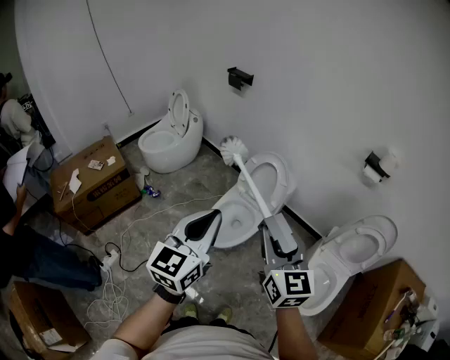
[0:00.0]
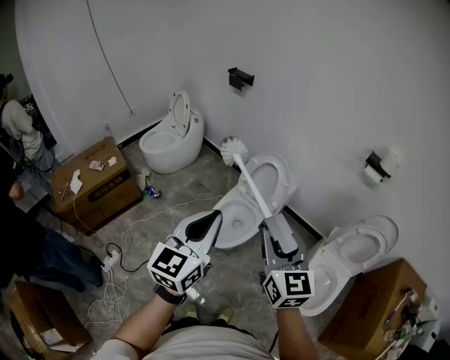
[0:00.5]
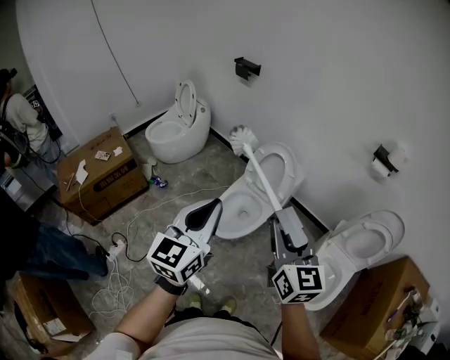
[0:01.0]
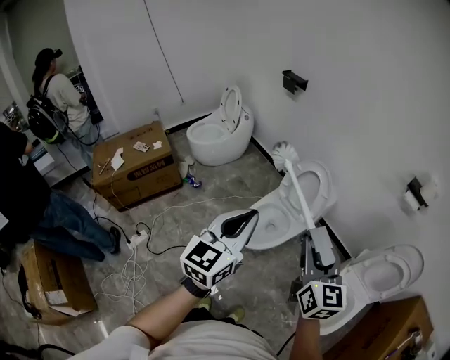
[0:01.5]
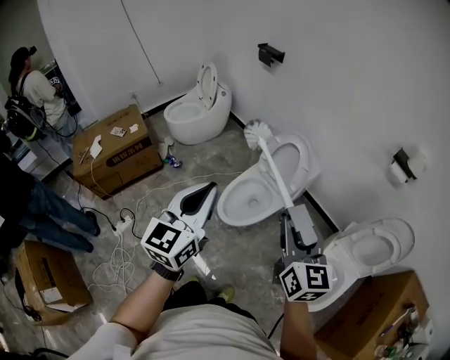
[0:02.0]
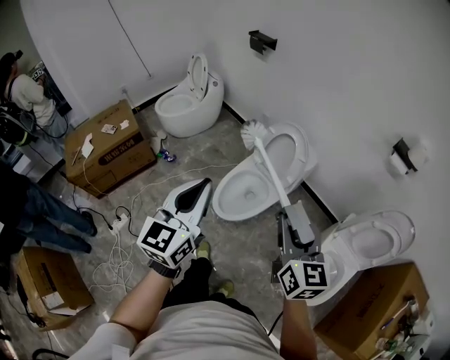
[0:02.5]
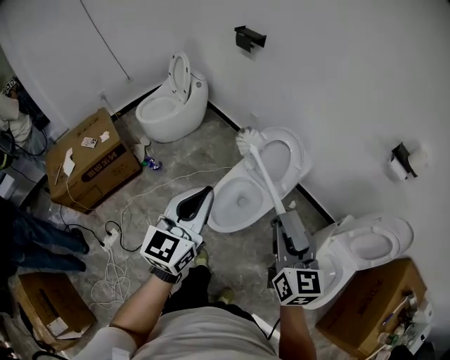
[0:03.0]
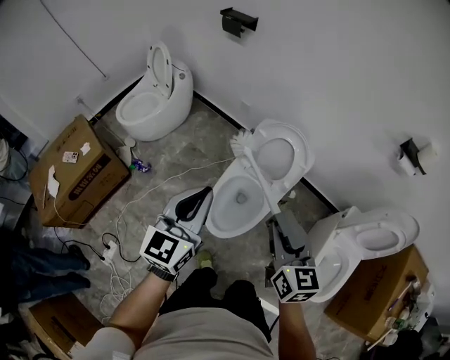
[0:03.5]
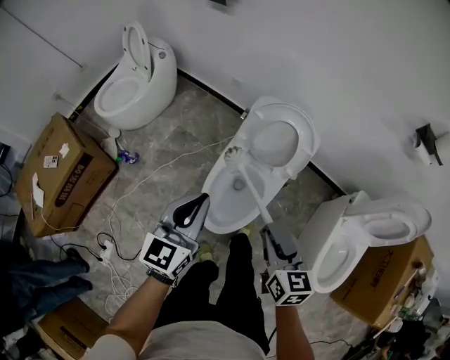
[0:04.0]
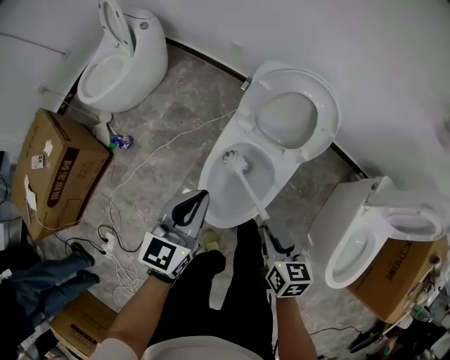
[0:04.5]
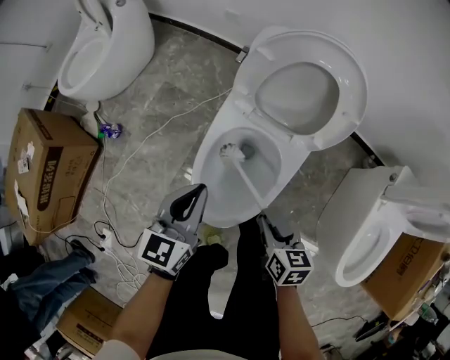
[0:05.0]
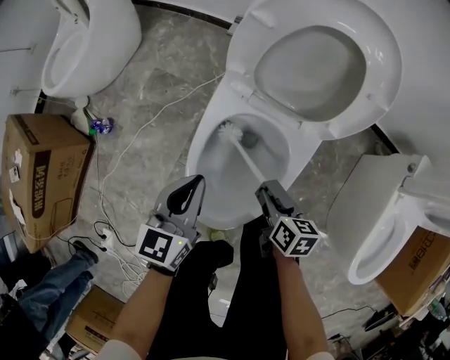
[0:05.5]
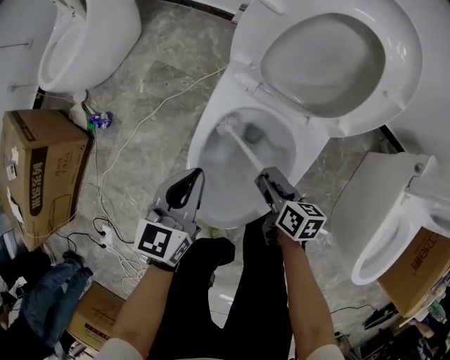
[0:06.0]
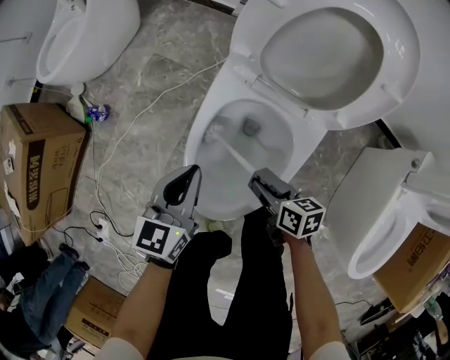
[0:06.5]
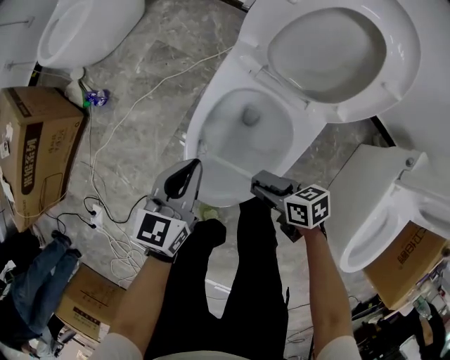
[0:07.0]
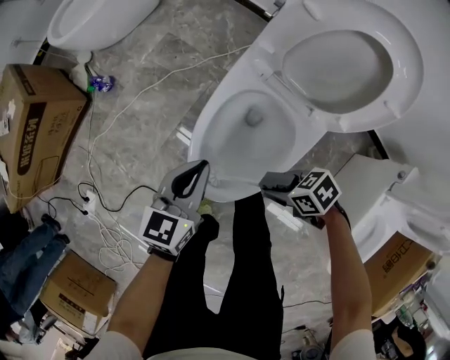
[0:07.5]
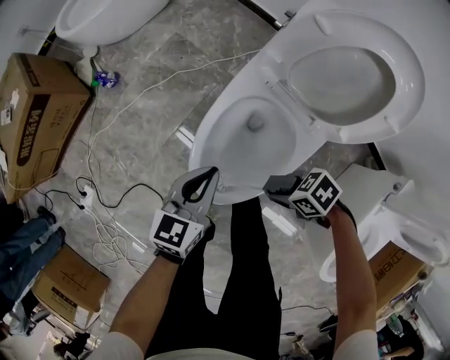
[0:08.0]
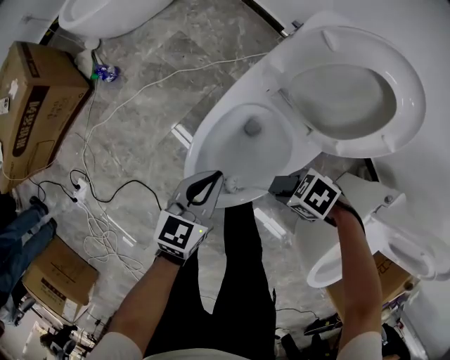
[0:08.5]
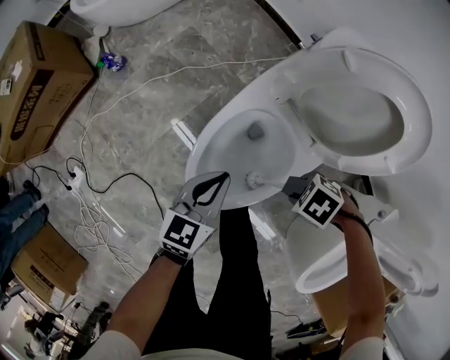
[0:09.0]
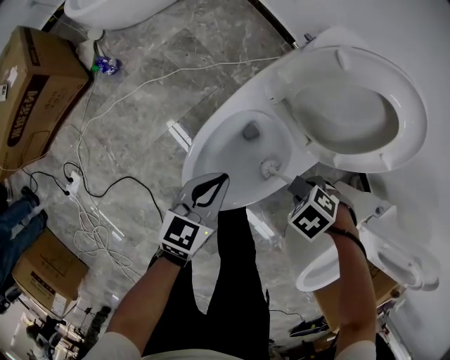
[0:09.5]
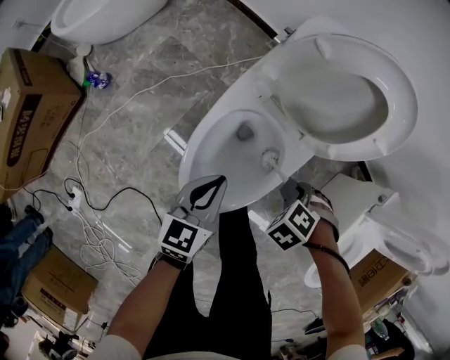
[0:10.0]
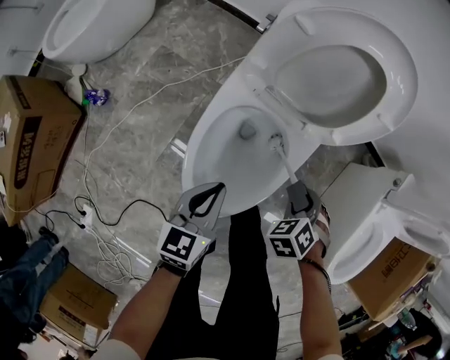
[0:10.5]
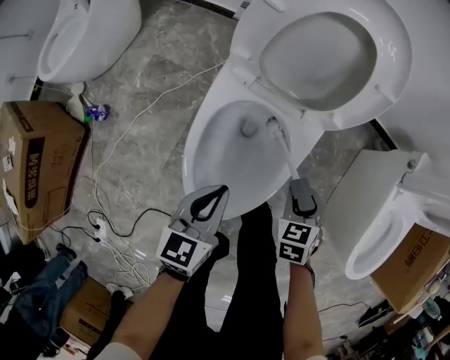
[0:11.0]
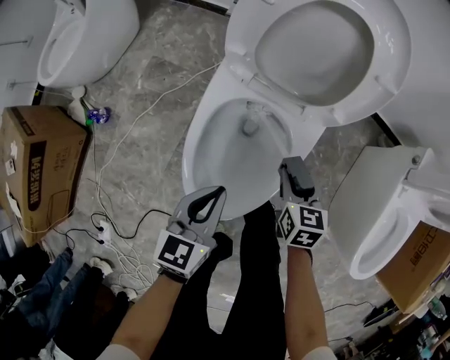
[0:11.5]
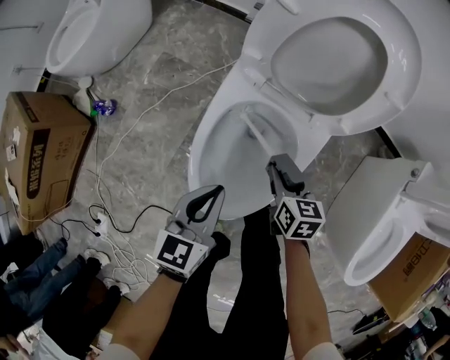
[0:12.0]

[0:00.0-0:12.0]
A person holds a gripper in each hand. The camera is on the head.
0:00.0 to 0:02.0: The right gripper shifts some 5 cm to the right.
0:02.0 to 0:04.0: The left gripper shifts some 40 cm forward and downward, and changes its angle by about 20 degrees; the right gripper is displaced downward and forward by roughly 35 cm, and rotates some 30 degrees.
0:04.0 to 0:06.0: Both grippers travel together downward, roughly 40 cm. The right gripper rotates about 40 degrees.
0:06.0 to 0:08.0: The left gripper changes place by roughly 5 cm, while the right gripper travels upward by roughly 5 cm, and changes its angle by roughly 80 degrees.
0:08.0 to 0:10.0: The right gripper changes place by roughly 10 cm, and turns by approximately 50 degrees.
0:10.0 to 0:12.0: The right gripper travels downward by some 5 cm, and tilts its fingers roughly 40 degrees upward.

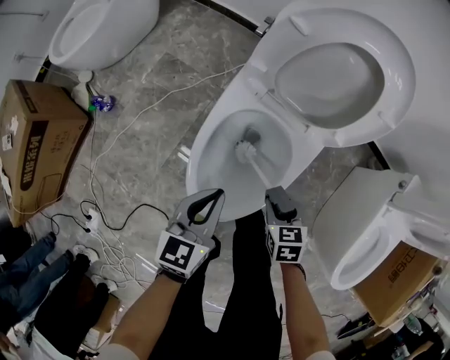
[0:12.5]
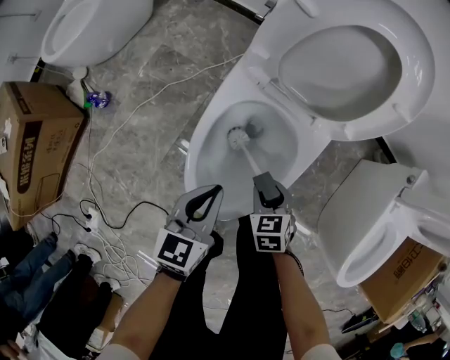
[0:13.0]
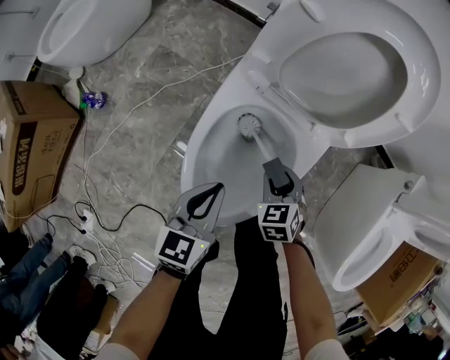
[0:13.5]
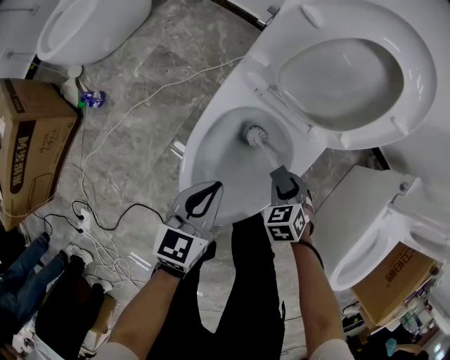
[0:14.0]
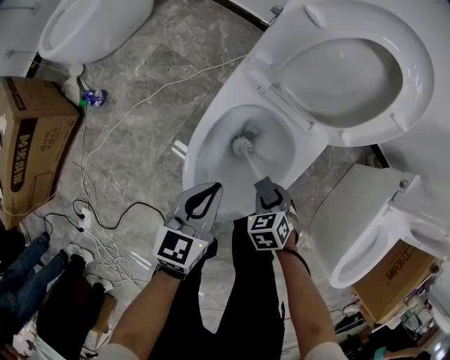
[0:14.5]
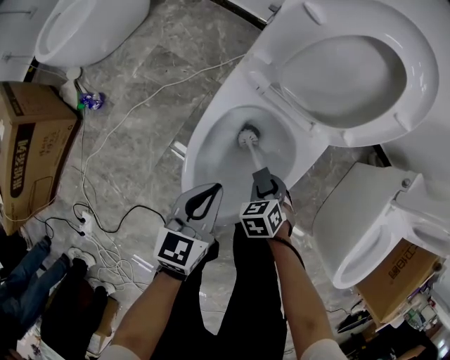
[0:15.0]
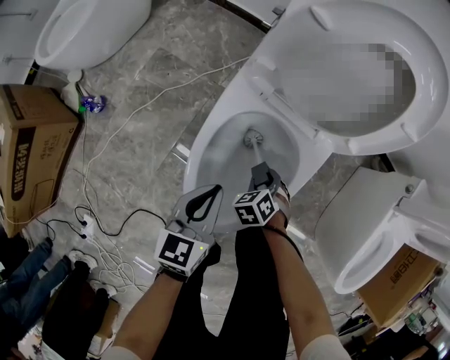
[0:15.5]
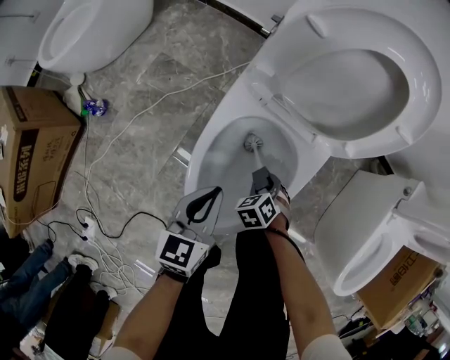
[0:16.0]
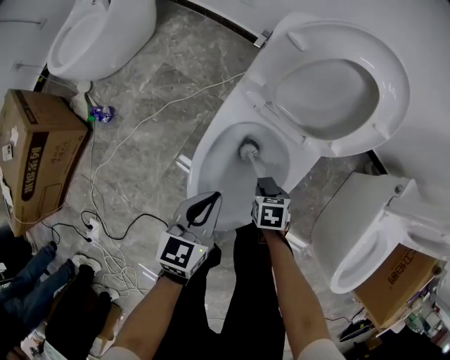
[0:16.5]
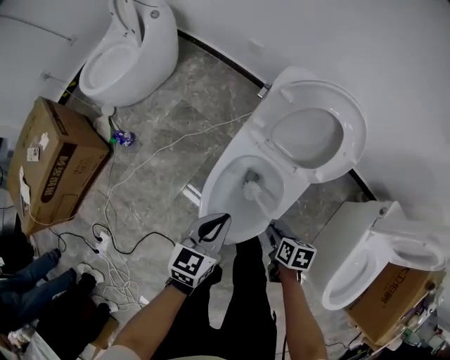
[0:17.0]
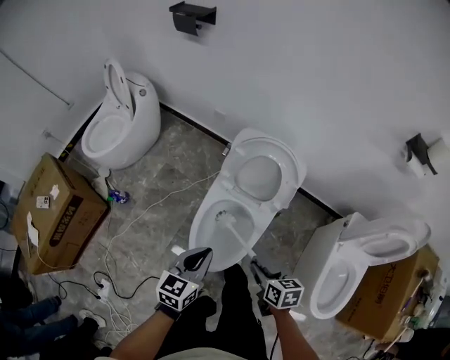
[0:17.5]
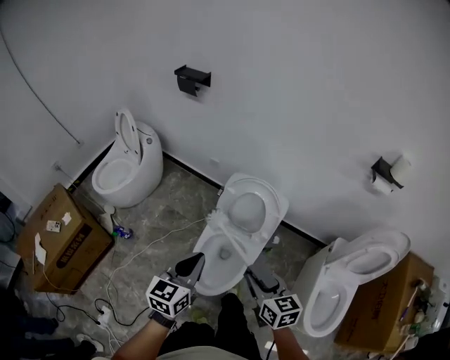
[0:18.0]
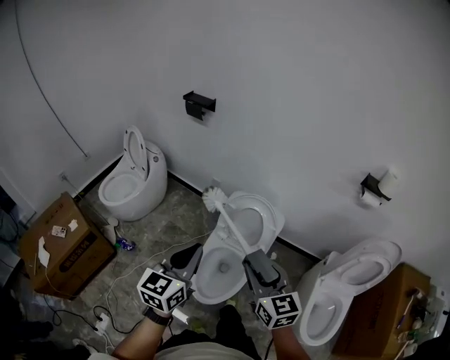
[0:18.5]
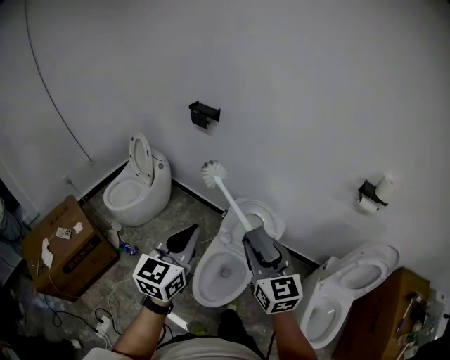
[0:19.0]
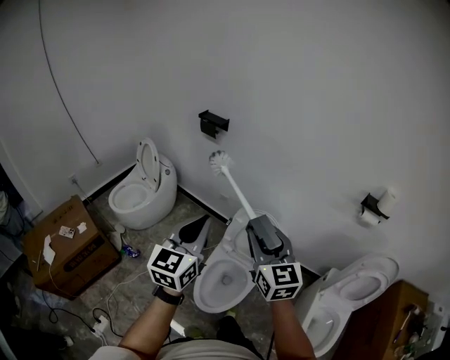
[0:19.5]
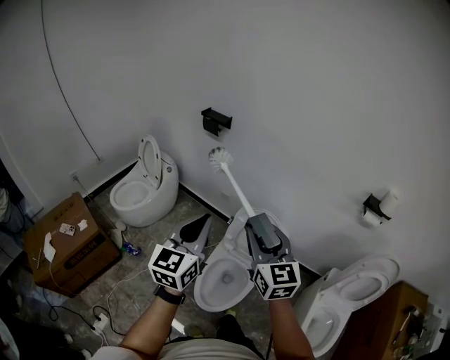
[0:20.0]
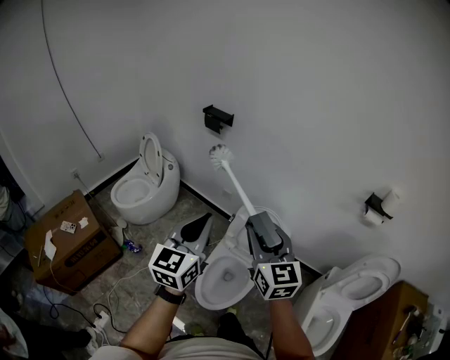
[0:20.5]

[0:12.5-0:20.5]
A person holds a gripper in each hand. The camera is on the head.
0:12.5 to 0:14.5: The right gripper goes about 5 cm downward, and turns by about 30 degrees.
0:14.5 to 0:16.5: The right gripper swivels approximately 30 degrees.
0:16.5 to 0:18.5: The two grippers go some 60 cm upward. The right gripper tips its fingers upward by roughly 60 degrees; the left gripper rotates approximately 20 degrees.
0:18.5 to 0:20.5: The right gripper goes roughly 15 cm upward, forward and to the left. The left gripper heads upward, covering some 10 cm.

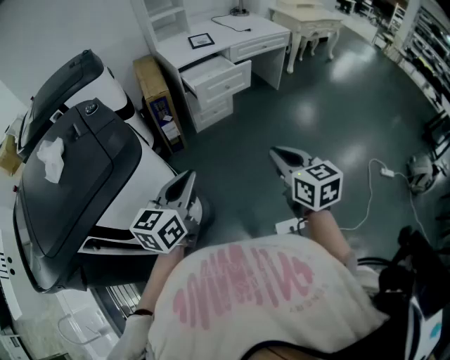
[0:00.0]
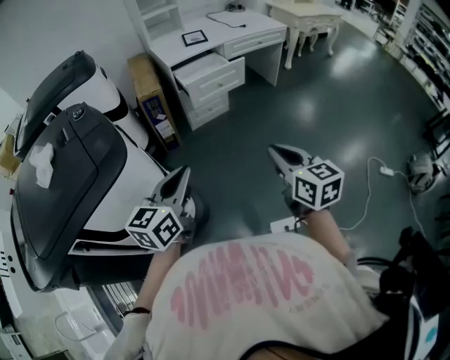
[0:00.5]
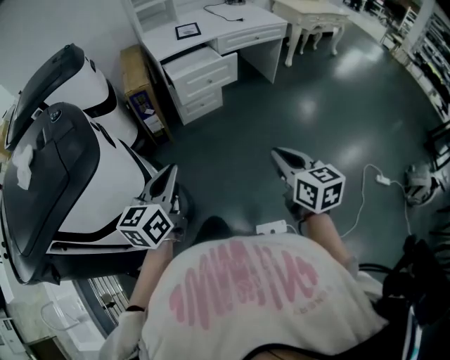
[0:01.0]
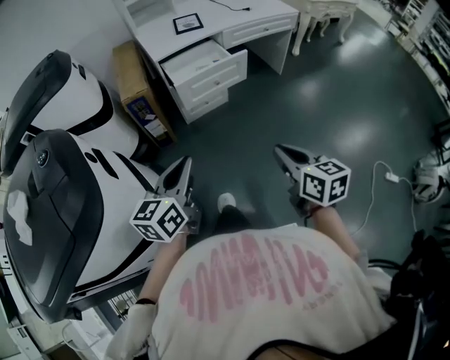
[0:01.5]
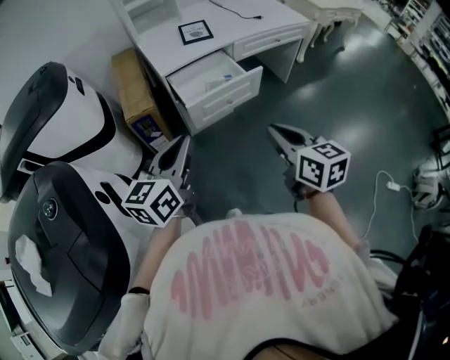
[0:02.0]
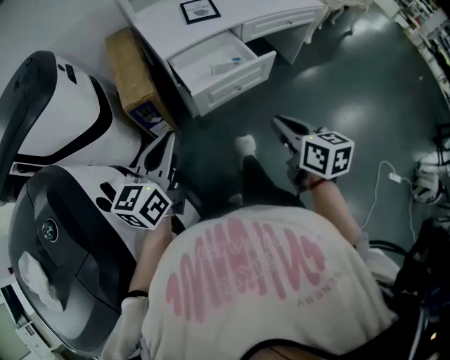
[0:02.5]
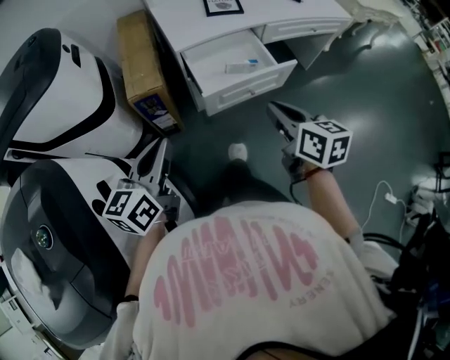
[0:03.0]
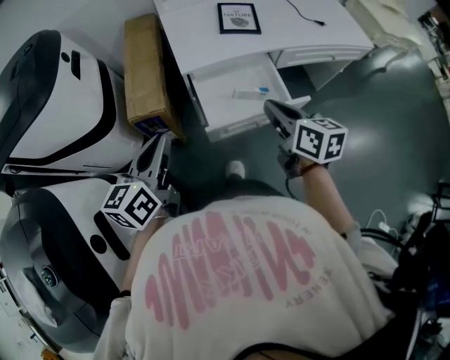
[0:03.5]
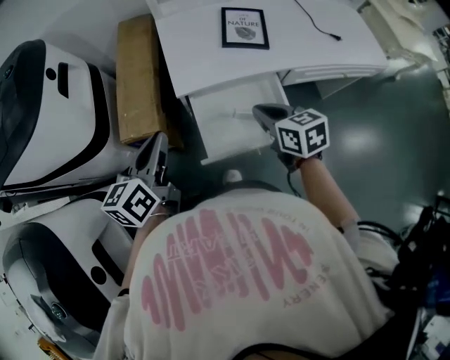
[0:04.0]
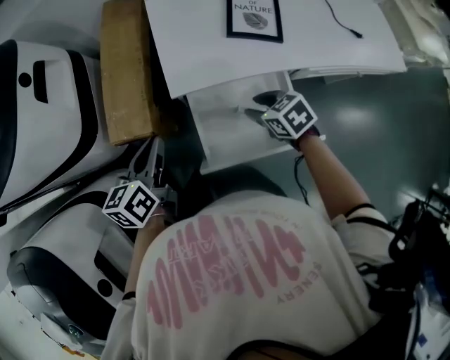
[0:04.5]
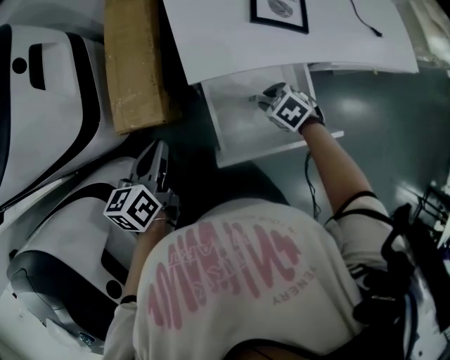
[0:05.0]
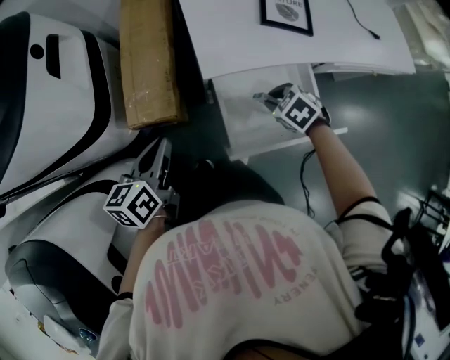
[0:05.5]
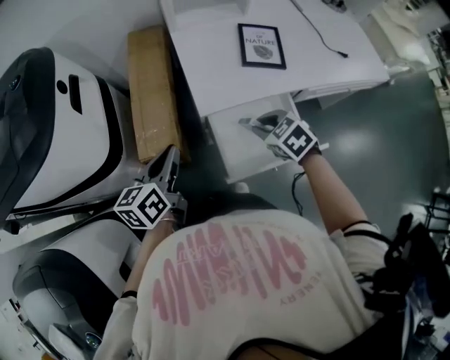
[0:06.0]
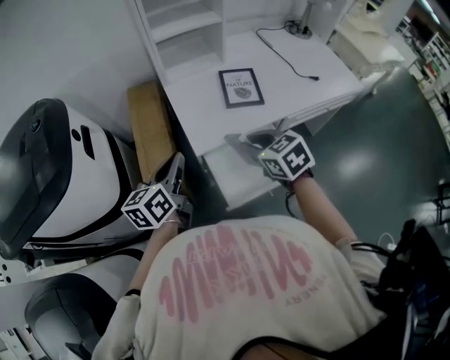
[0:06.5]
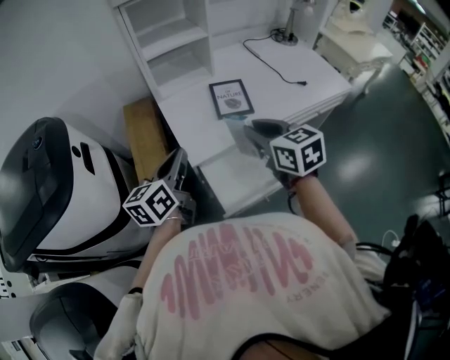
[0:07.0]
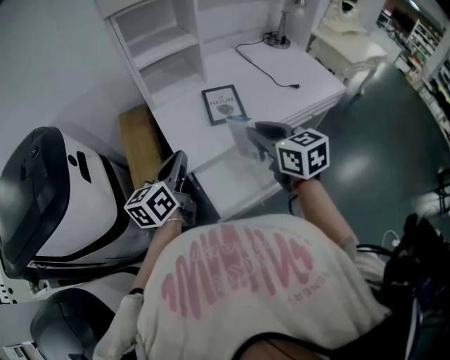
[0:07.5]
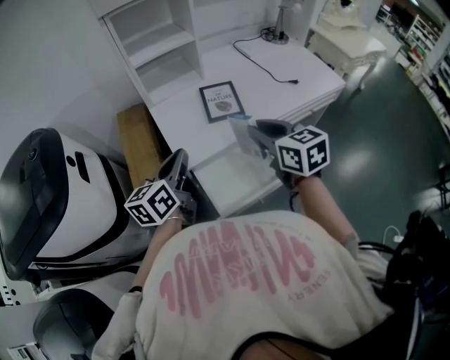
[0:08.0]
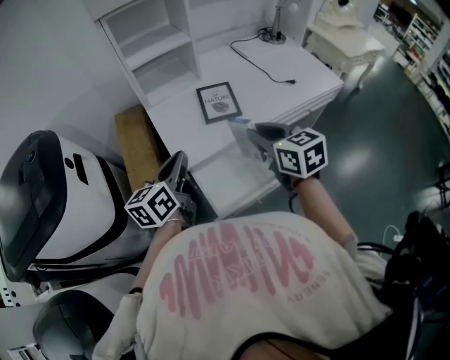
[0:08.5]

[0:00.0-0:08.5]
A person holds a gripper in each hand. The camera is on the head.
0:00.0 to 0:02.0: Both grippers move forward, approximately 35 cm.
0:02.0 to 0:04.0: The two grippers go about 35 cm forward. The right gripper rotates about 30 degrees. The left gripper changes its angle by about 30 degrees.
0:04.0 to 0:06.5: The right gripper moves approximately 20 cm downward and comes back, and opens and closes again. The left gripper moves roughly 10 cm downward and comes back.
0:06.5 to 0:08.5: The left gripper heads to the right, covering about 10 cm. Meanwhile the right gripper shifts about 15 cm to the right and upward, and changes its angle by roughly 20 degrees.
